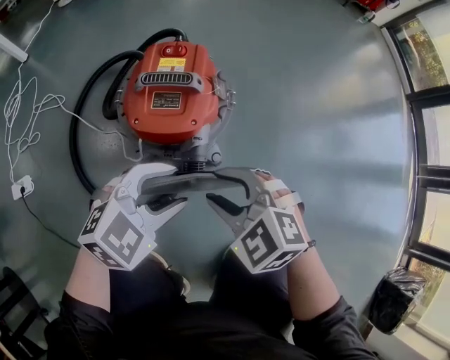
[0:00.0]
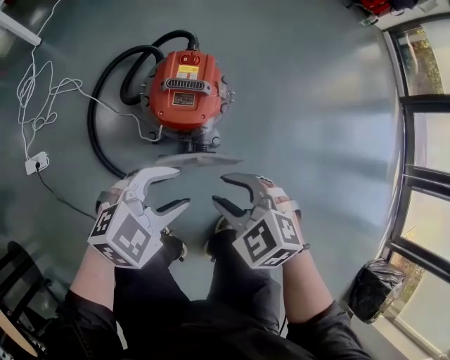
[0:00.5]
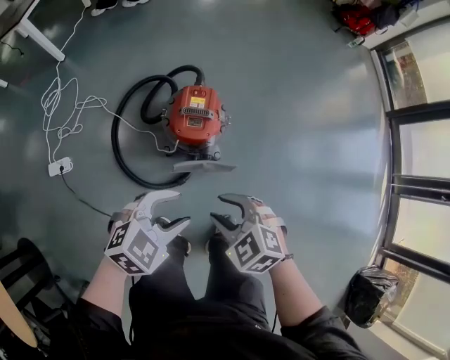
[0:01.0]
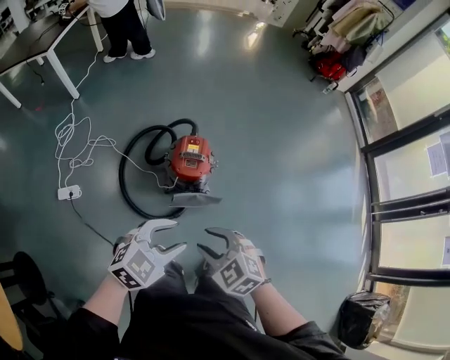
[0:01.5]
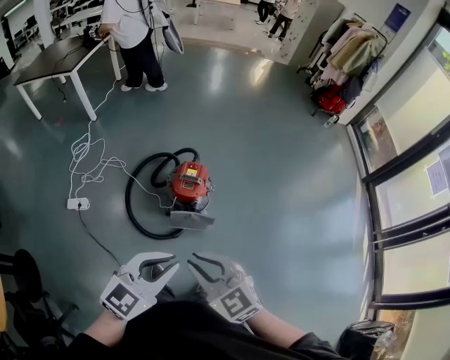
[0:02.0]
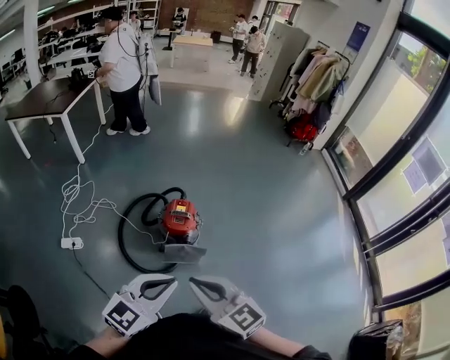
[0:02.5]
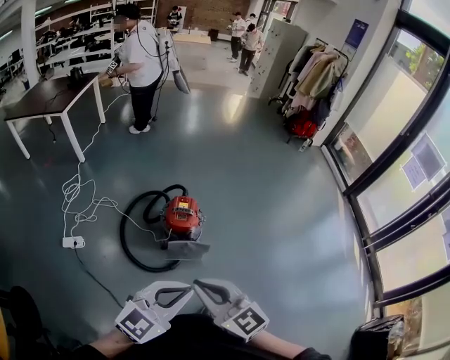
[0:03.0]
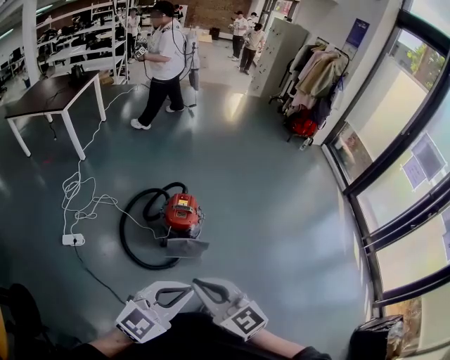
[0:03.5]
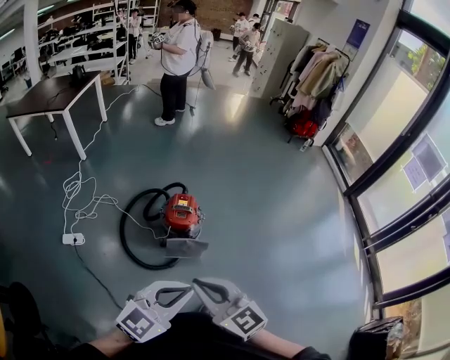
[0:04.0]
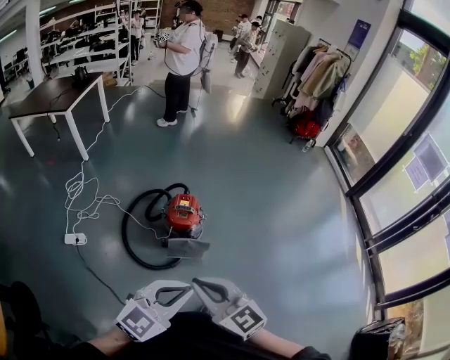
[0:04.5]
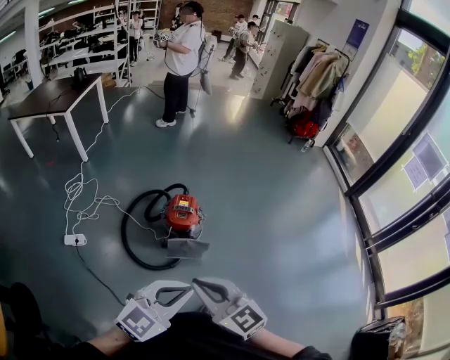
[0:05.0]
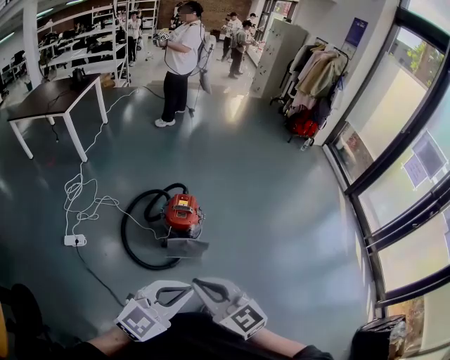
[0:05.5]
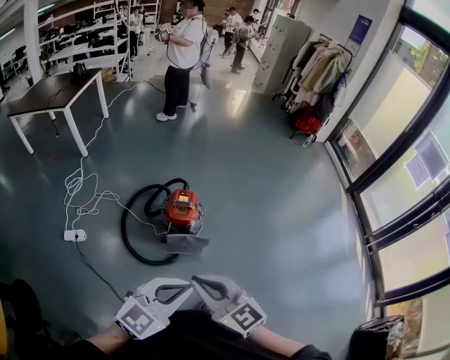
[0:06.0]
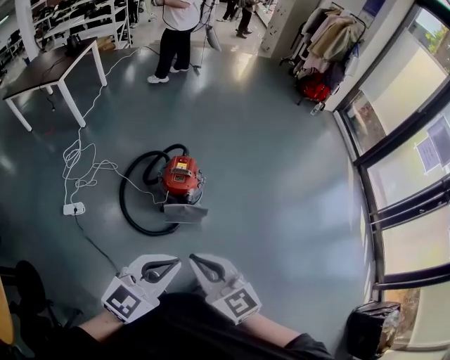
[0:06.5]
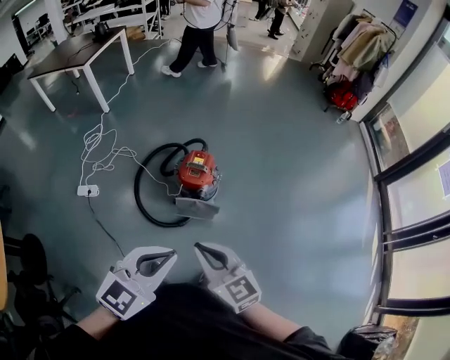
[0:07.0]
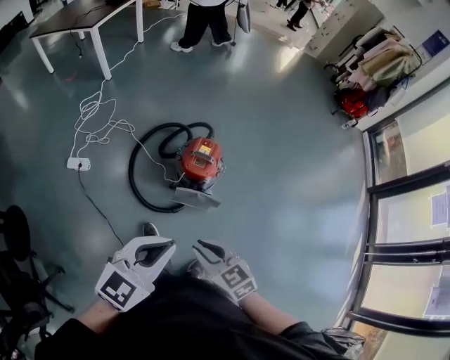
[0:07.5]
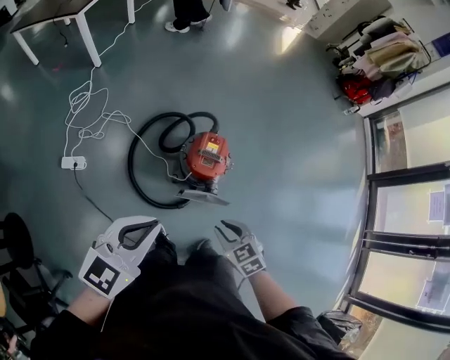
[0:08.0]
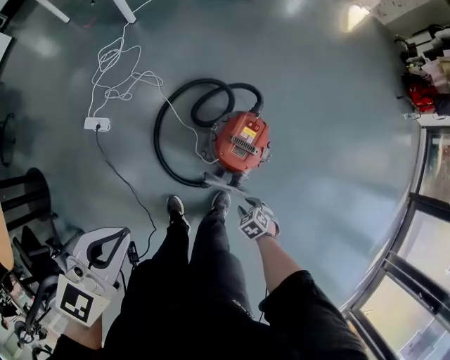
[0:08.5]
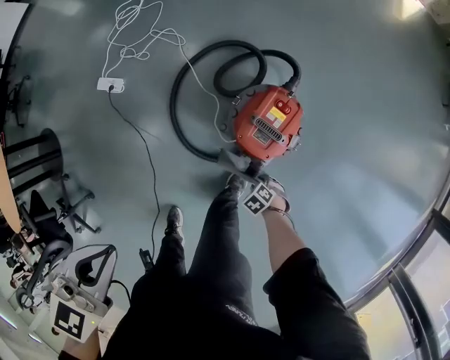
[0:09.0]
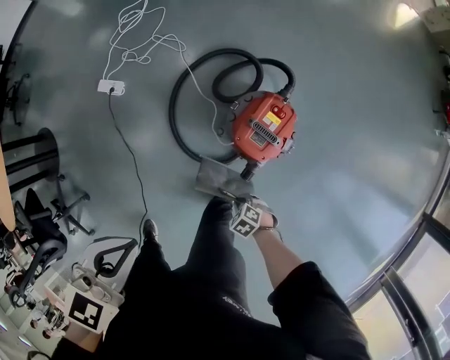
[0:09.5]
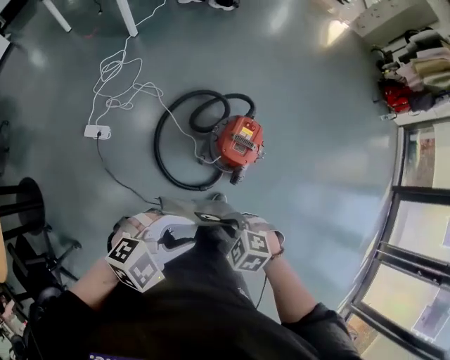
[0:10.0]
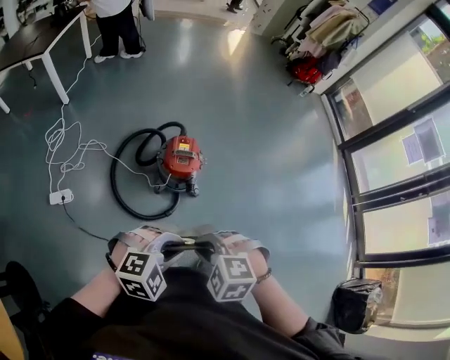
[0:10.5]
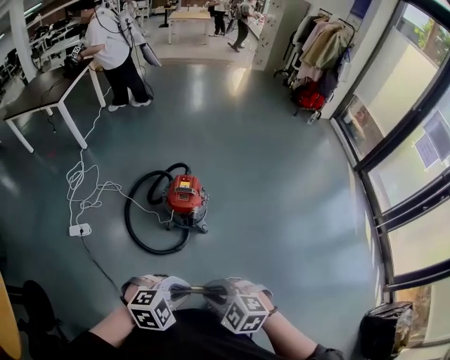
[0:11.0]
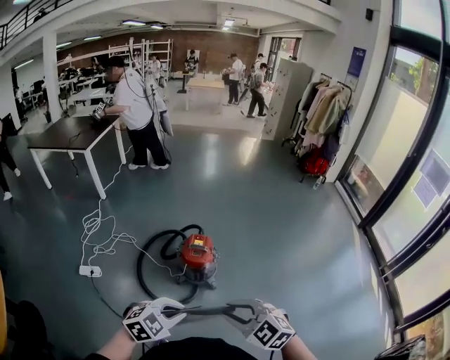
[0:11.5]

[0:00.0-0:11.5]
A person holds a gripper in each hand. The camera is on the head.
0:00.0 to 0:02.0: Both grippers travel together upward and backward, about 60 cm. The left gripper rotates about 30 degrees, and closes up; the right gripper changes its angle by some 30 degrees, and closes up.
0:02.0 to 0:04.0: The right gripper shifts about 10 cm upward and backward. The left gripper shifts about 5 cm backward.
0:04.0 to 0:06.0: The two grippers keep their place.
0:06.0 to 0:07.5: The right gripper heads downward, covering about 20 cm, and changes its angle by approximately 30 degrees. The left gripper heads forward and to the left, covering about 10 cm, and swivels approximately 20 degrees.
0:07.5 to 0:09.5: The left gripper moves about 25 cm, and turns by approximately 30 degrees; the right gripper heads downward, covering roughly 40 cm, angles its fingers downward, by roughly 40 degrees, and opens and closes again.
0:09.5 to 0:11.5: The right gripper shifts roughly 60 cm upward, and points its fingers approximately 30 degrees further upward, while the left gripper shifts by some 30 cm, rotates roughly 50 degrees, and opens and closes again.

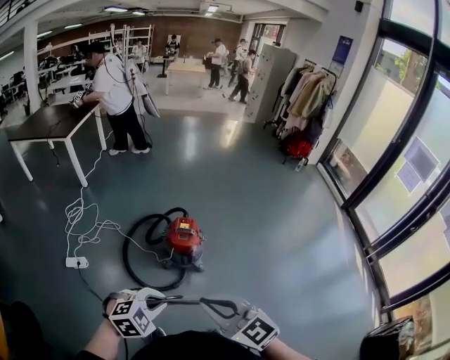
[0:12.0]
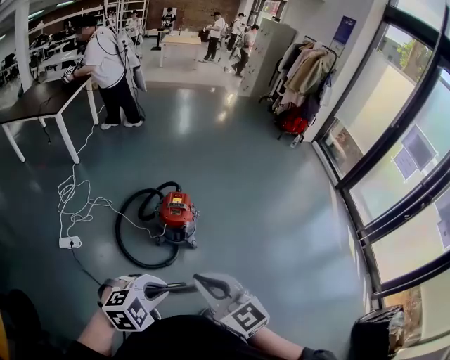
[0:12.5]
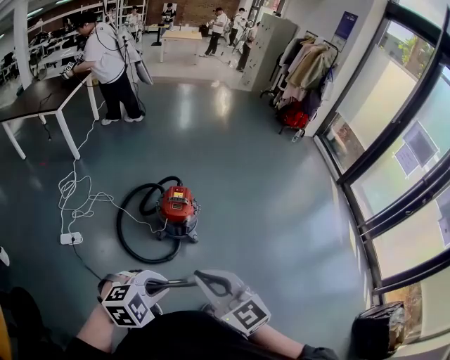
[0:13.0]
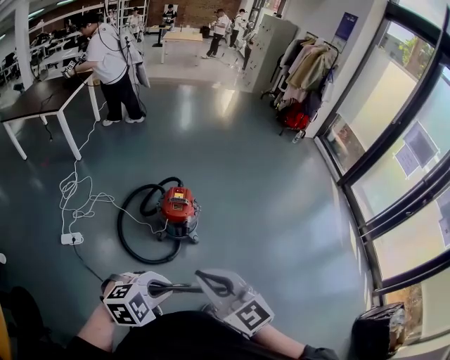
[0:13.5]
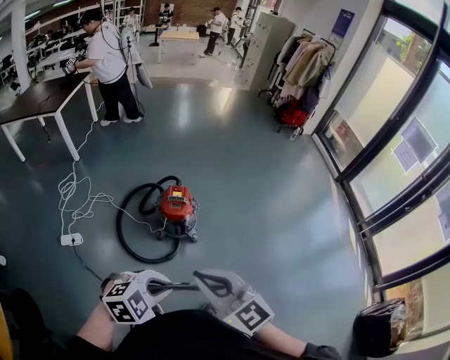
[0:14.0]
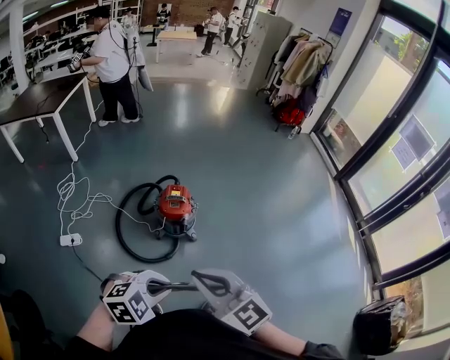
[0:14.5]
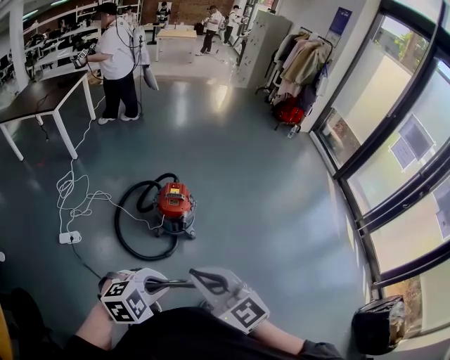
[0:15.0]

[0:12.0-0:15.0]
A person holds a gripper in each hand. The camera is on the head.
0:12.0 to 0:13.5: The left gripper changes place by approximately 5 cm.
0:13.5 to 0:15.0: The grippers make only small movements.

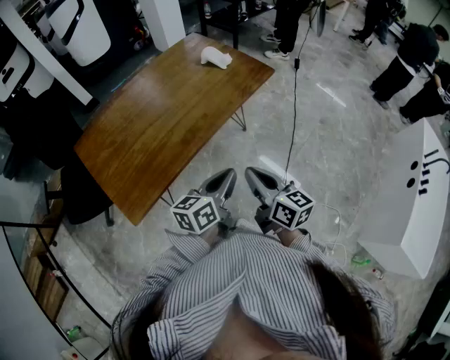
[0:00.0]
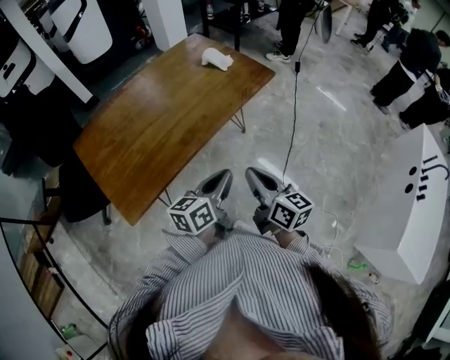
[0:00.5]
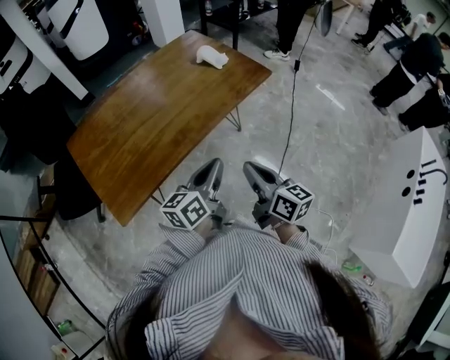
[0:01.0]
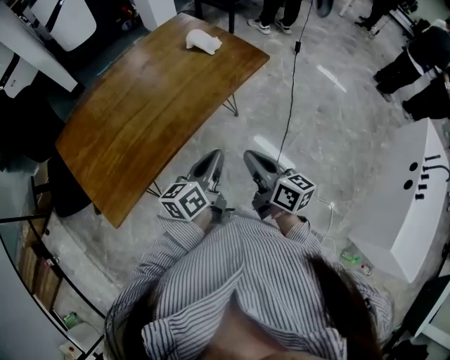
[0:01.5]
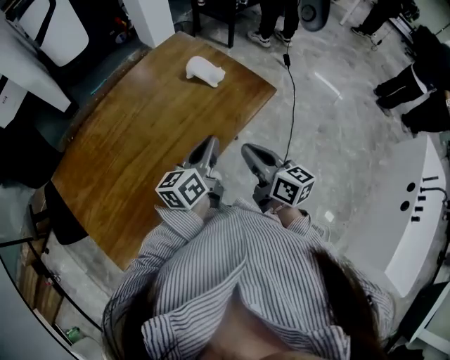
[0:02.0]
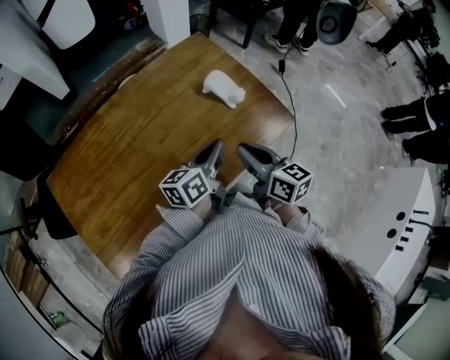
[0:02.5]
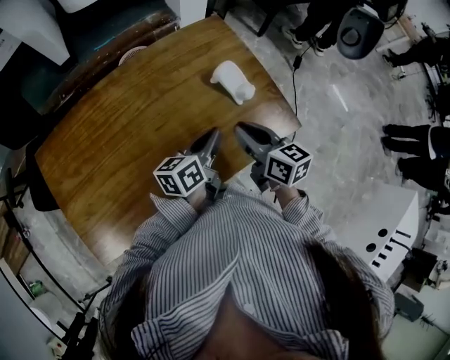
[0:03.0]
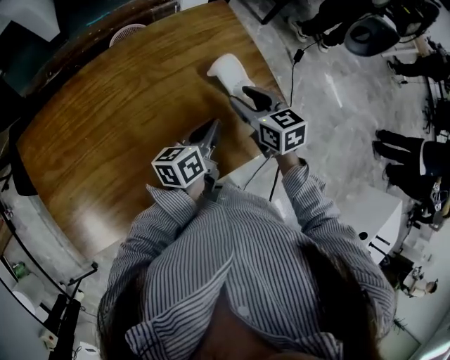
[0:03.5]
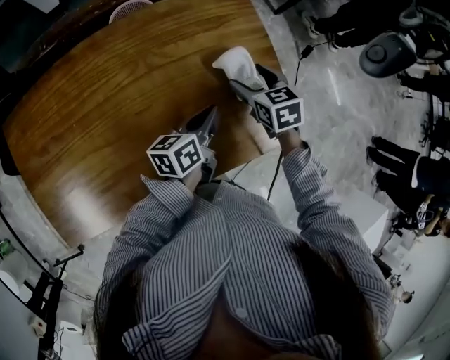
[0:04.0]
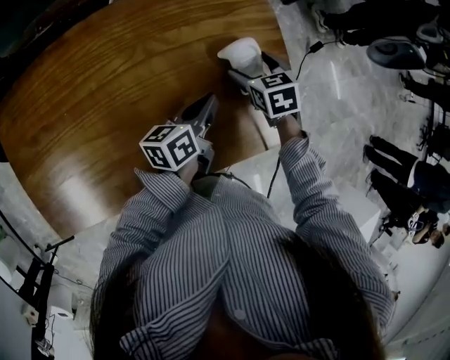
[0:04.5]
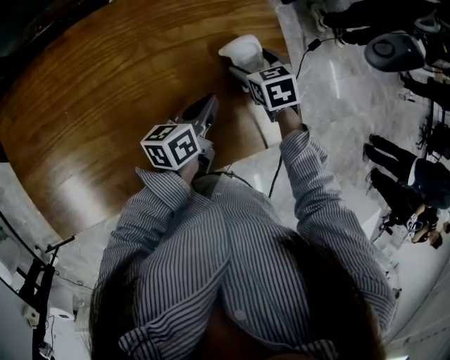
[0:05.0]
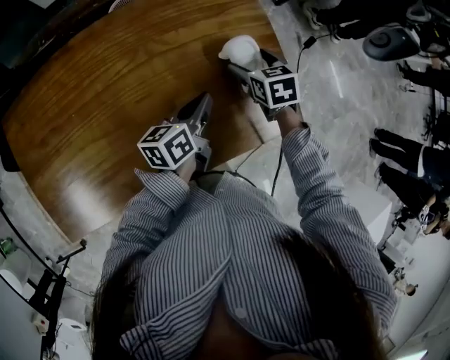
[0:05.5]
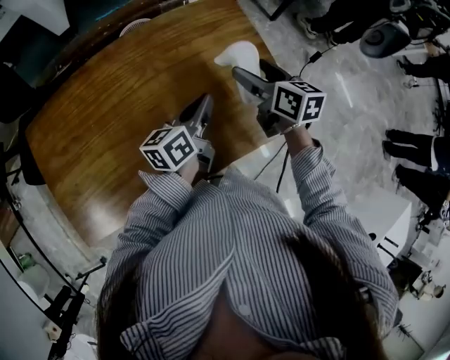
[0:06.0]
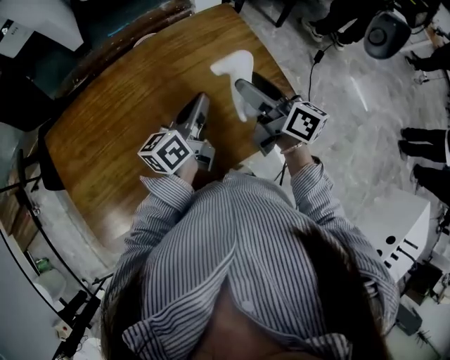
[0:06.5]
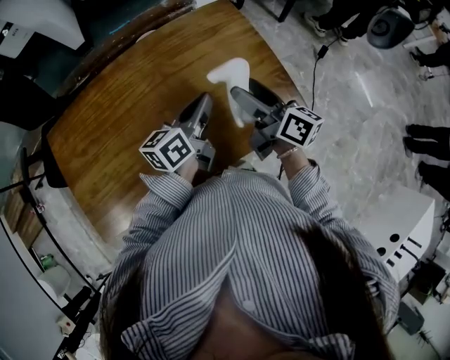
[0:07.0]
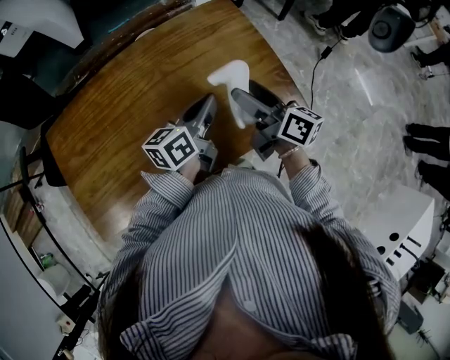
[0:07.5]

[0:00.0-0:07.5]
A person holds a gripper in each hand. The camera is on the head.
0:00.0 to 0:02.0: Both grippers move forward, some 30 cm.
0:02.0 to 0:04.0: The right gripper travels forward by approximately 40 cm, tilts its fingers some 40 degrees downward, and opens its fingers; the left gripper goes approximately 30 cm forward and downward, and swivels some 30 degrees.
0:04.0 to 0:05.5: The grippers make only small movements.
0:05.5 to 0:07.5: The left gripper shifts roughly 10 cm upward. The right gripper shifts roughly 20 cm upward and backward, and tilts its fingers about 50 degrees upward.

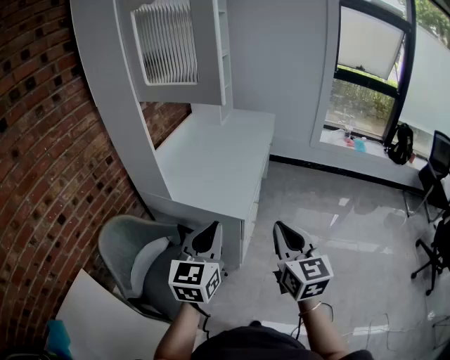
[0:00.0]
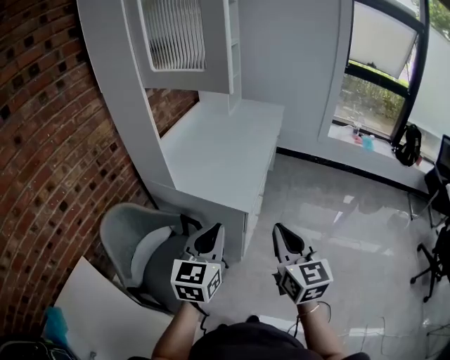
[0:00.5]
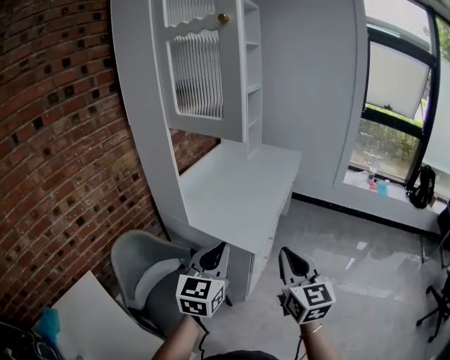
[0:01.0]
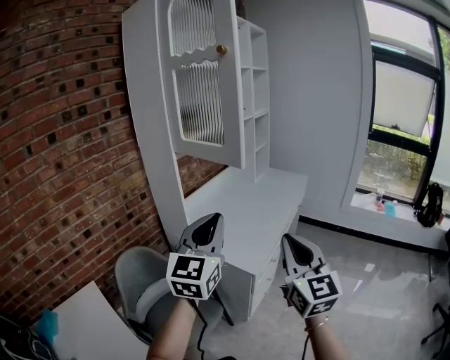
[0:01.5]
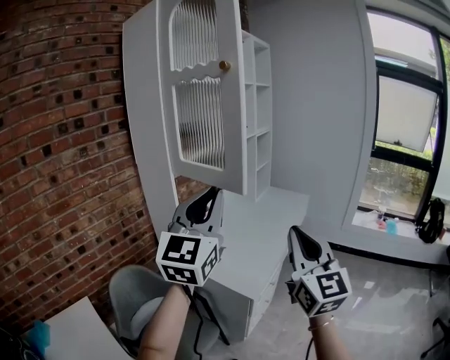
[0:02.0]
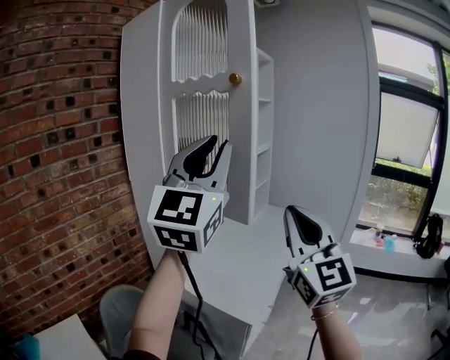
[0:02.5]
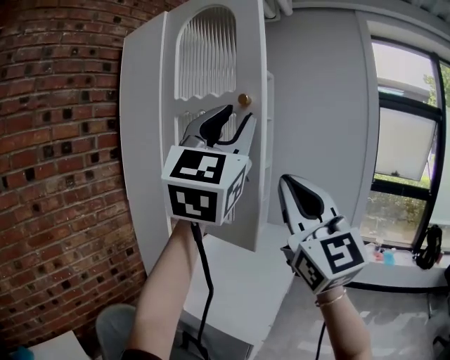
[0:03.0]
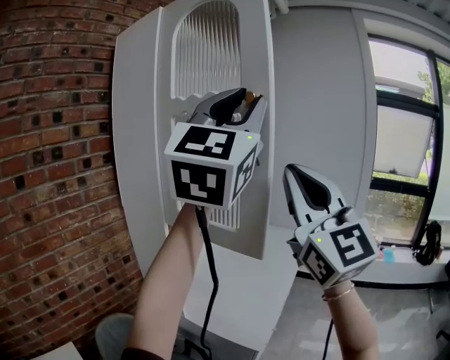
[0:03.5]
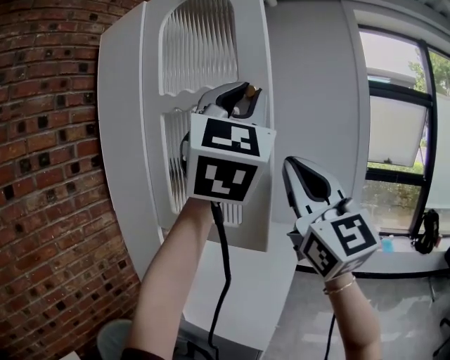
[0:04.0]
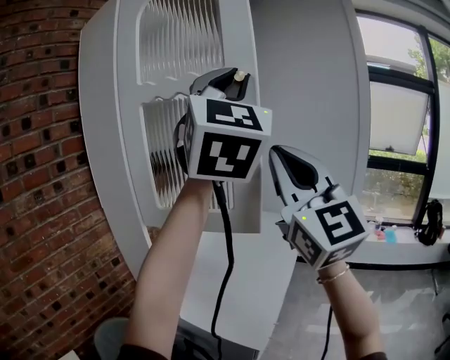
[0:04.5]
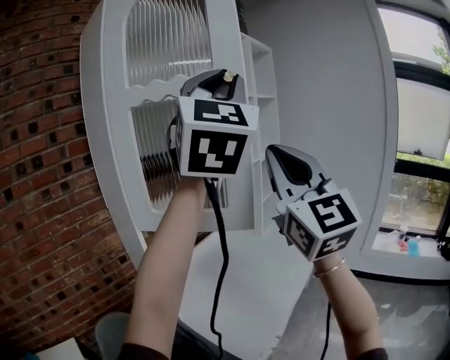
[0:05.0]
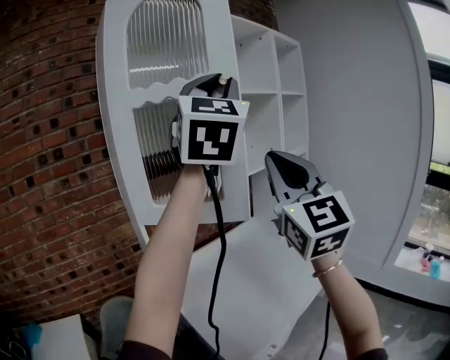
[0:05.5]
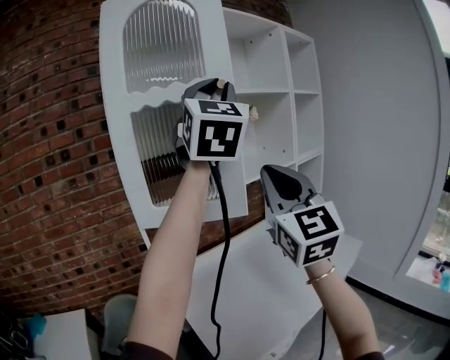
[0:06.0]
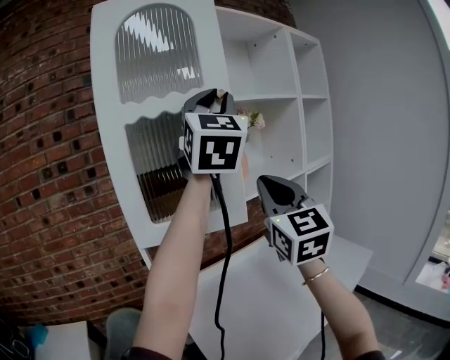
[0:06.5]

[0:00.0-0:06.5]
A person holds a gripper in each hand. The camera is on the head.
0:00.0 to 0:02.0: The two grippers go approximately 25 cm upward and forward. The right gripper rotates roughly 30 degrees; the left gripper rotates some 30 degrees.
0:02.0 to 0:04.5: Both grippers travel together upward and forward, roughly 30 cm. The left gripper changes its angle by some 20 degrees; the right gripper turns by approximately 20 degrees.
0:04.5 to 0:06.5: The right gripper shifts by some 30 cm, and rotates some 30 degrees. Meanwhile the left gripper shifts by about 25 cm, and turns by roughly 30 degrees.
